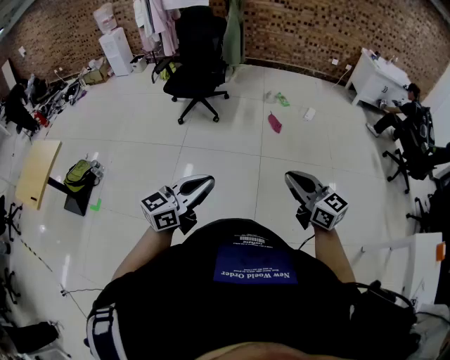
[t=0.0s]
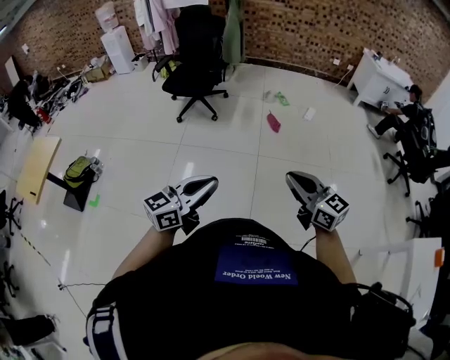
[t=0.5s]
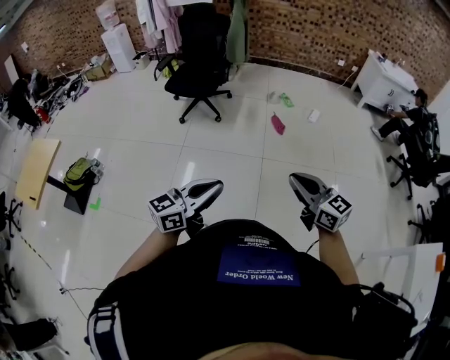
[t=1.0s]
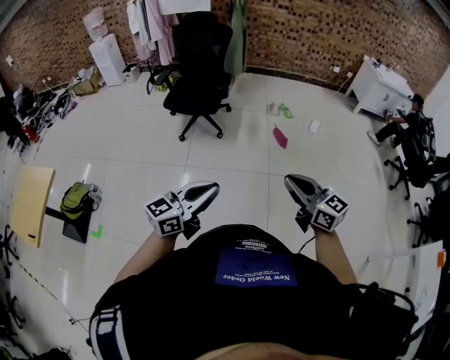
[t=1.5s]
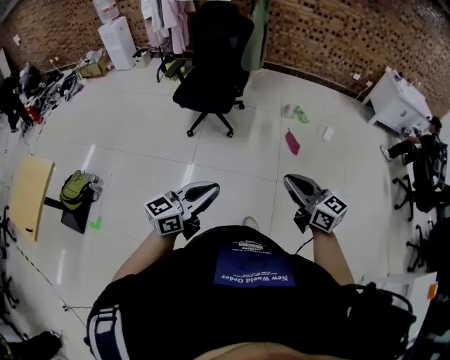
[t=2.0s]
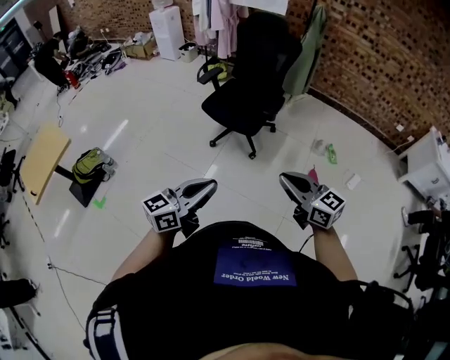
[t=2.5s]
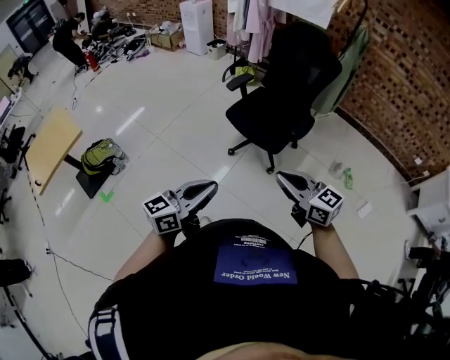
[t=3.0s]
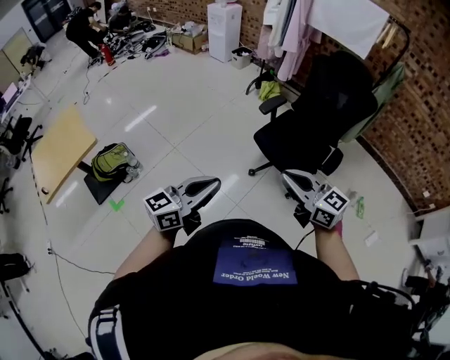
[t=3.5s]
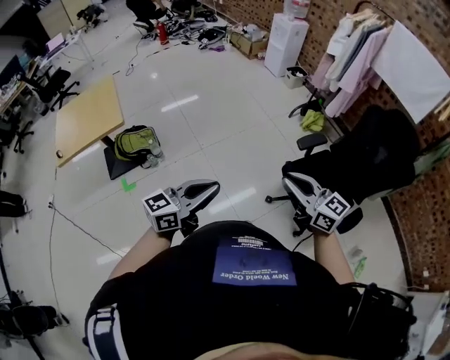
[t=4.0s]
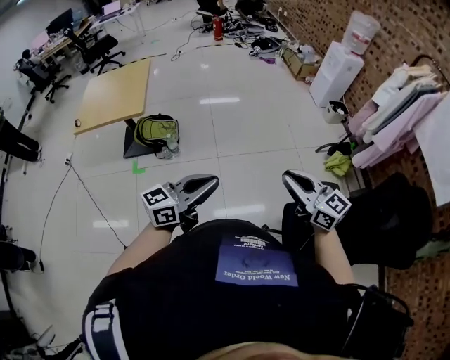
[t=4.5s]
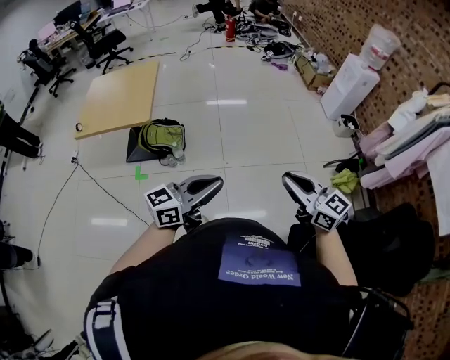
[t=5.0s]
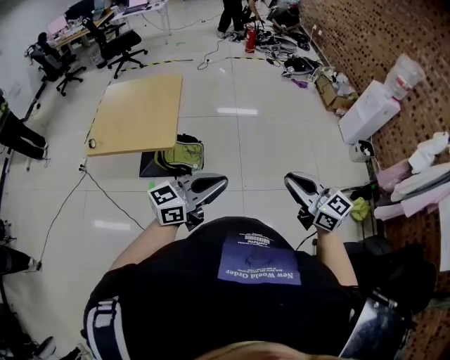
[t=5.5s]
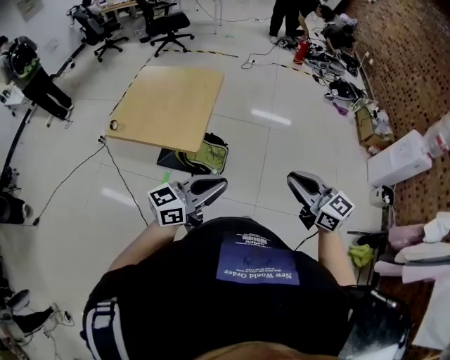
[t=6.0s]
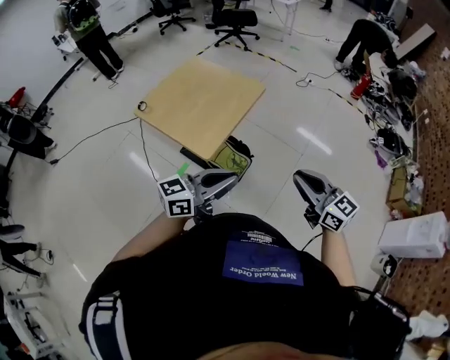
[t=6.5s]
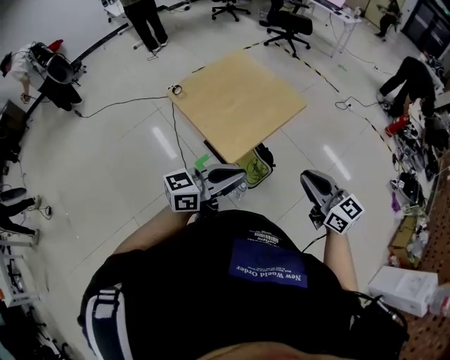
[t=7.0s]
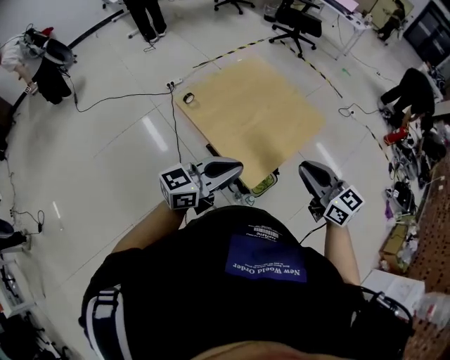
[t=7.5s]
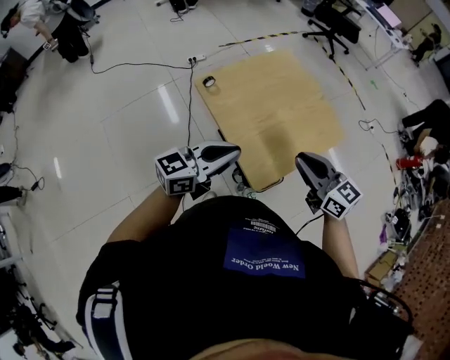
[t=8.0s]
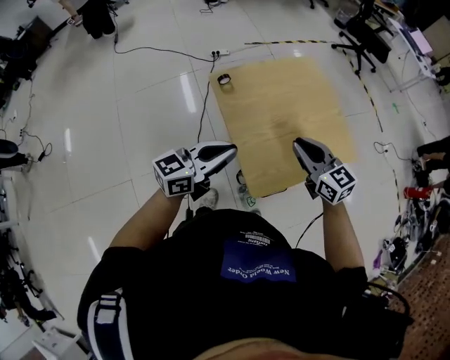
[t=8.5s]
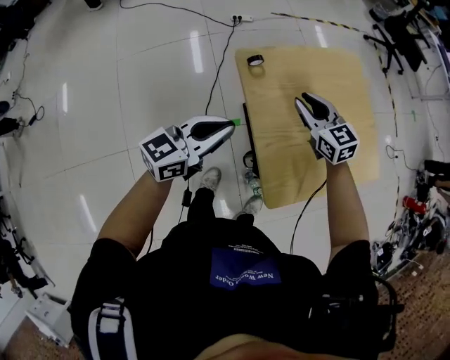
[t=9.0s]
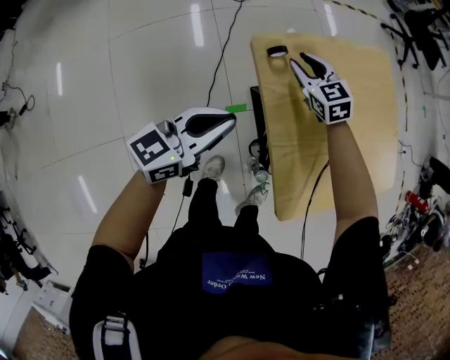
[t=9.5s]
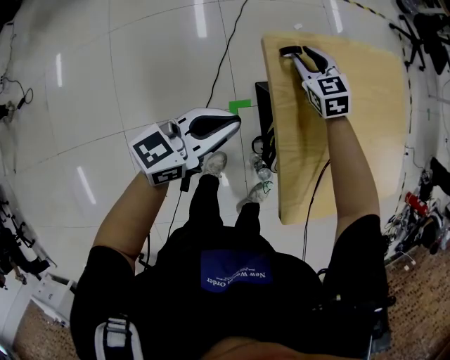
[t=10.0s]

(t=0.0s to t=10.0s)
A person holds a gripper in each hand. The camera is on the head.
t=0.0s - t=2.0s: The two grippers go roughly 35 cm forward and to the left.
t=2.0s - t=4.0s: The pair of grippers is taken roughly 70 cm. The right gripper rotates roughly 50 degrees, while the left gripper swivels approximately 50 degrees.
t=4.0s - t=6.0s: Both grippers are carried approximately 60 cm. The right gripper swivels approximately 40 degrees. Meanwhile the left gripper rotates about 40 degrees.
t=6.0s - t=8.0s: The right gripper shifts by approximately 50 cm, and rotates roughly 50 degrees. The left gripper ends up roughly 35 cm from where it was, and swivels about 50 degrees.
t=8.0s - t=10.0s: The left gripper heads to the left, downward and forward, covering approximately 35 cm, and swivels approximately 20 degrees. The right gripper goes roughly 60 cm forward, downward and to the left, changes its angle by roughly 40 degrees, and opens its fingers.

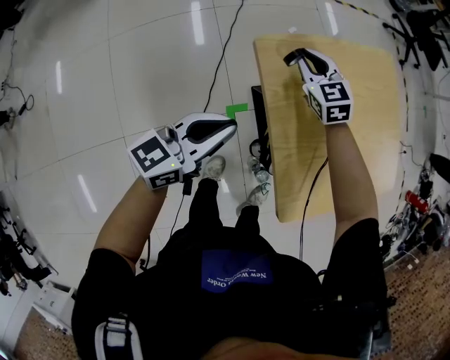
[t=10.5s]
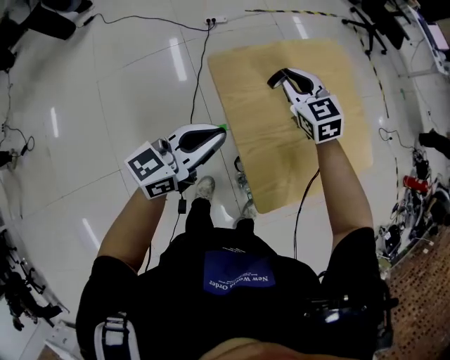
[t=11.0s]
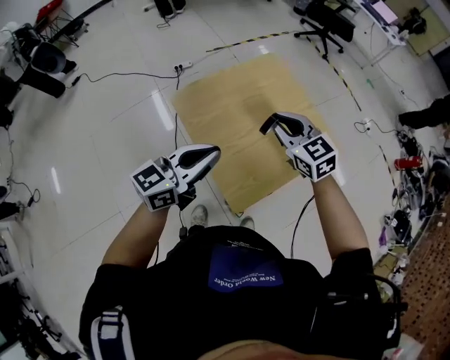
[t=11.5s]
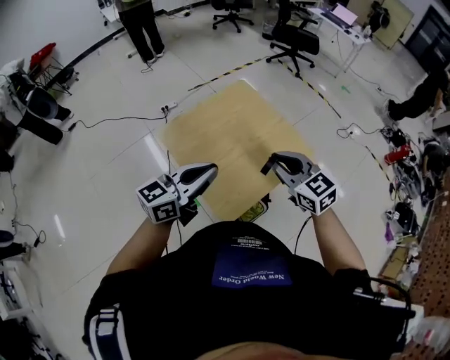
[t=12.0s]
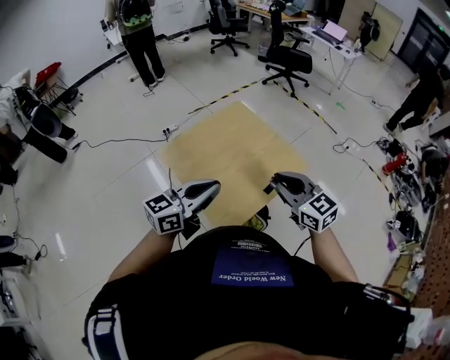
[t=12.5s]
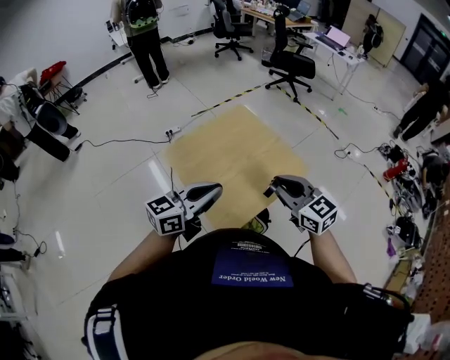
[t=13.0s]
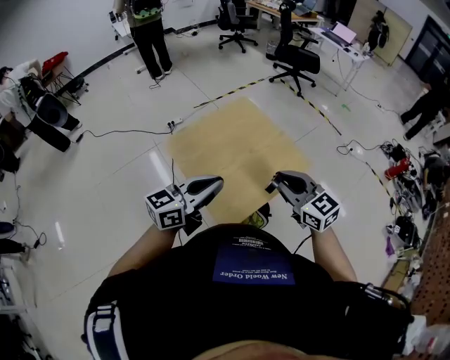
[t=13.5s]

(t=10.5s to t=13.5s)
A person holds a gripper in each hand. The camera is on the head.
t=10.5s - t=12.0s: The left gripper goes approximately 35 cm to the right and upward, and changes its angle by about 20 degrees; the right gripper heads to the right, backward and upward, covering roughly 50 cm.
t=12.0s - t=13.5s: The right gripper shifts by roughly 5 cm.

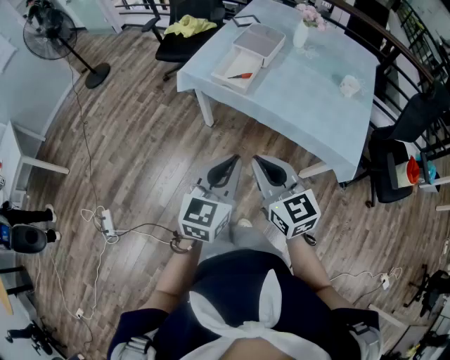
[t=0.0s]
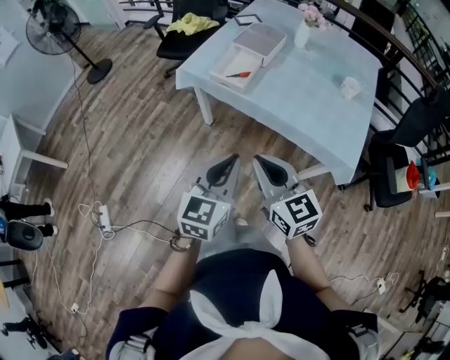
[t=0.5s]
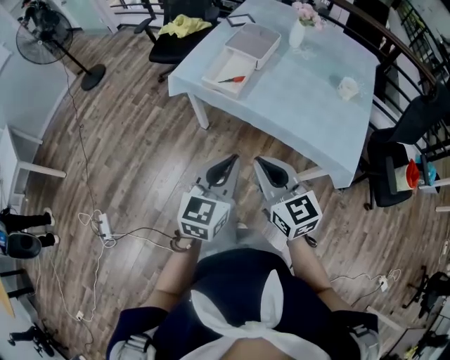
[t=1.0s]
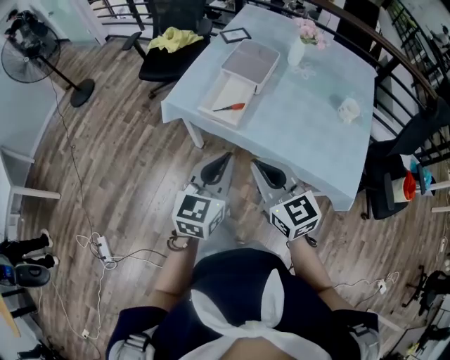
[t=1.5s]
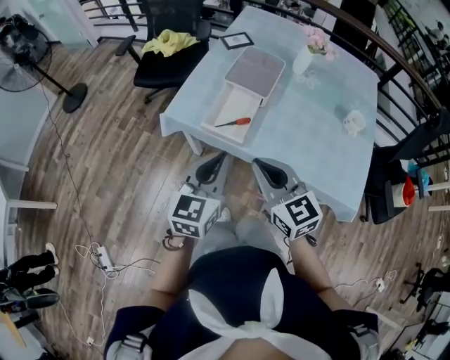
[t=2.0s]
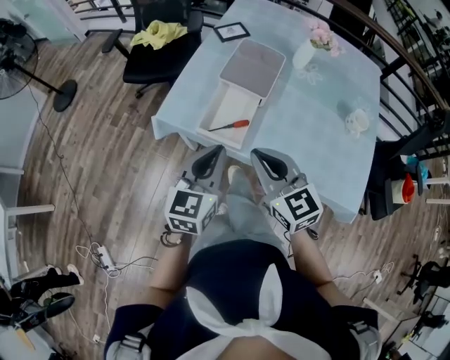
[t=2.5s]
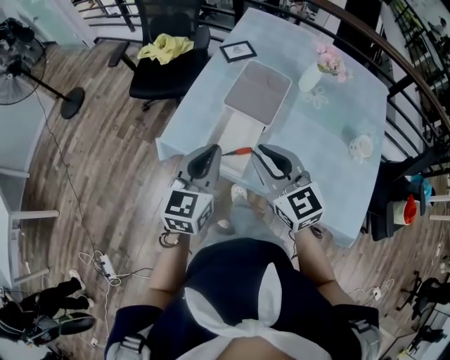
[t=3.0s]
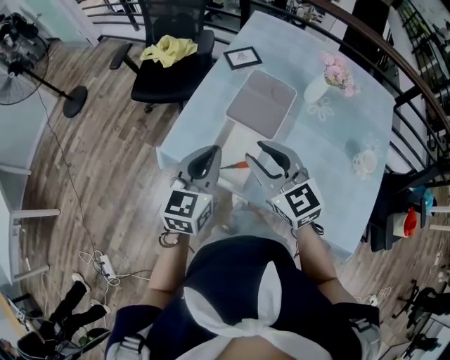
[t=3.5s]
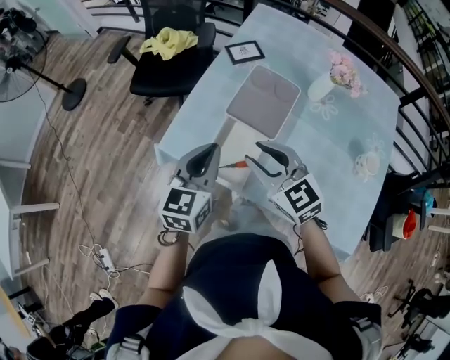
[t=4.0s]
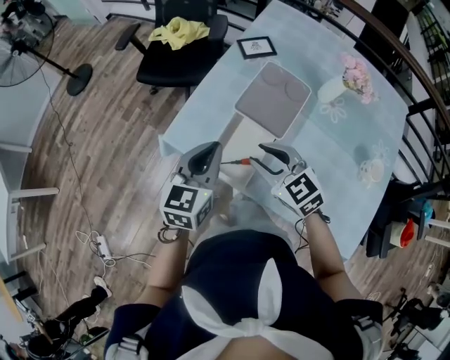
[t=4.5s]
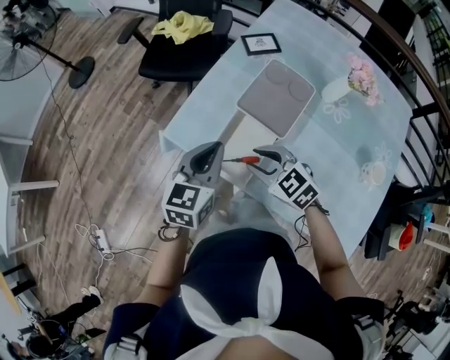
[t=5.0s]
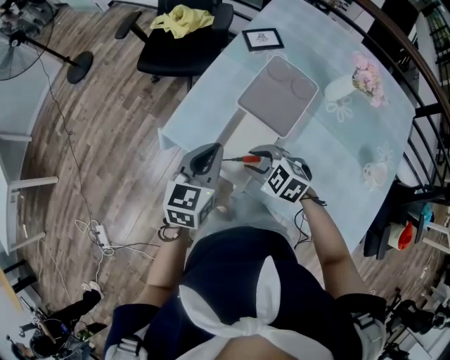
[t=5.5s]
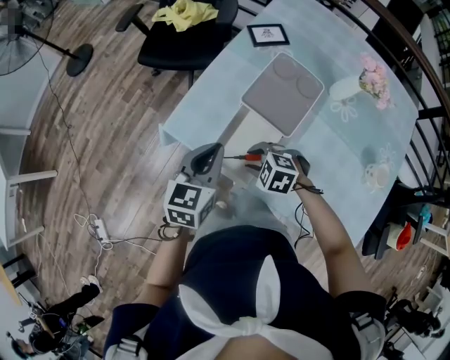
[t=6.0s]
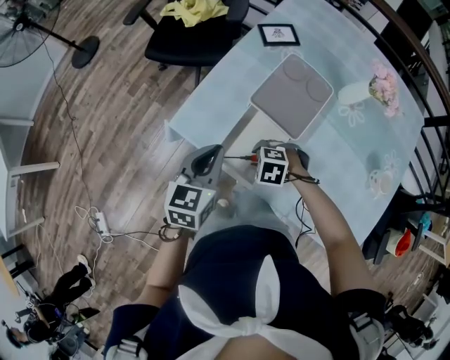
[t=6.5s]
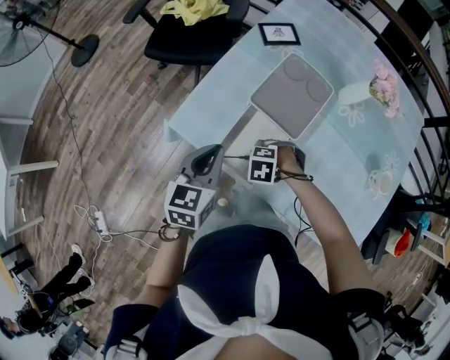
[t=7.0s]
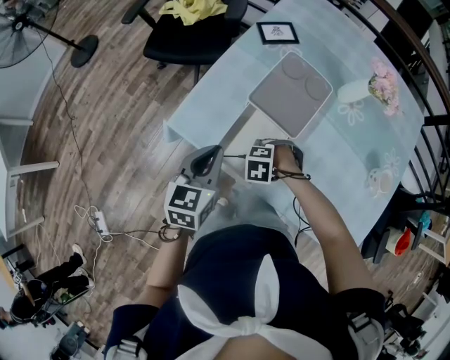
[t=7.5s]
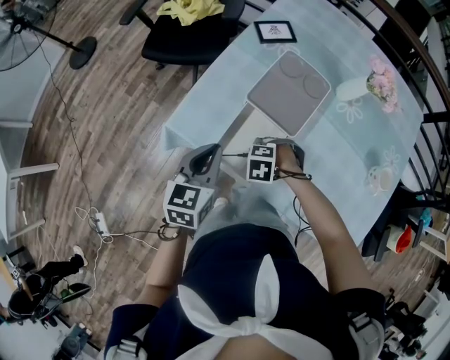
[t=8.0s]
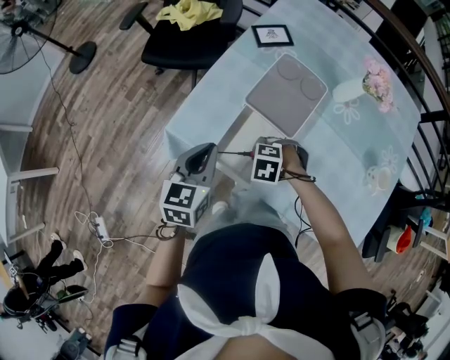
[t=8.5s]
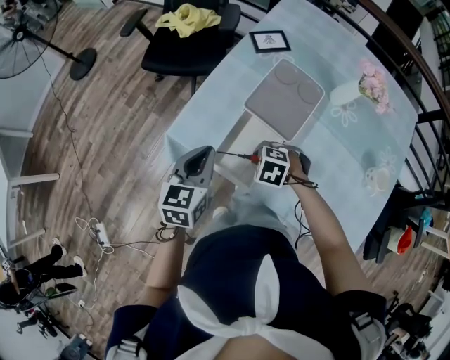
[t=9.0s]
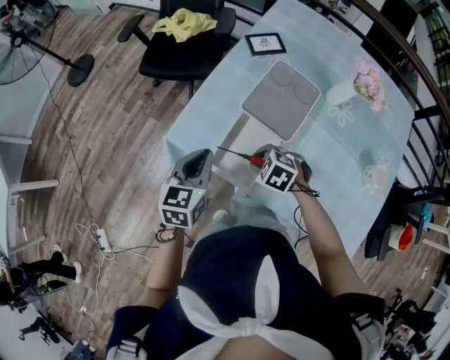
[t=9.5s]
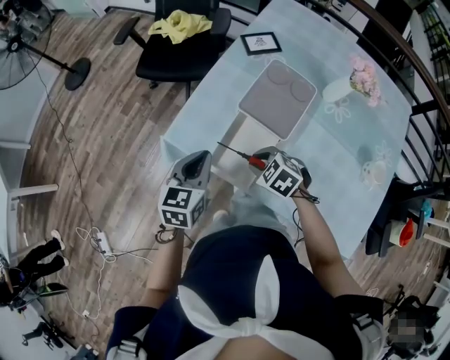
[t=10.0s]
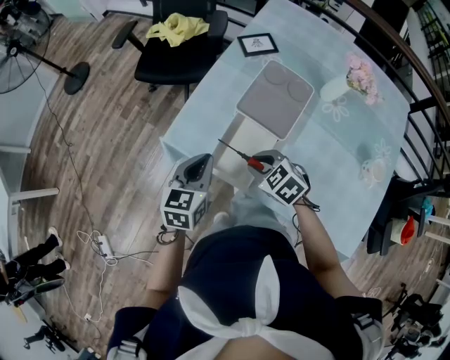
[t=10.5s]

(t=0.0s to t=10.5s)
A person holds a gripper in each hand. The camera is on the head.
t=0.0s - t=2.0s: The two grippers go some 30 cm forward.
t=2.0s - t=4.0s: Both grippers move forward, some 25 cm. The right gripper opens.
t=4.0s - t=6.5s: The right gripper heads downward, covering about 25 cm, and tilts its fingers about 50 degrees downward. The left gripper moves downward, approximately 10 cm.
t=6.5s - t=8.5s: The grippers make only small movements.
t=8.5s - t=10.5s: The right gripper moves upward, some 10 cm, and swivels approximately 40 degrees.

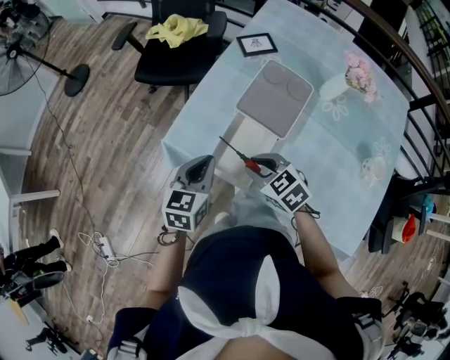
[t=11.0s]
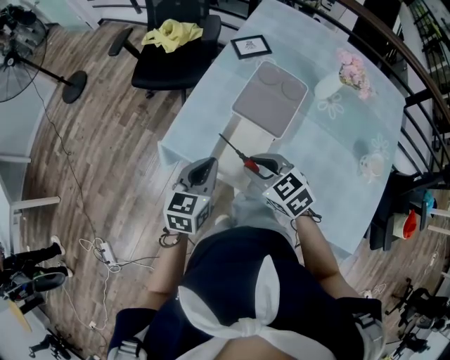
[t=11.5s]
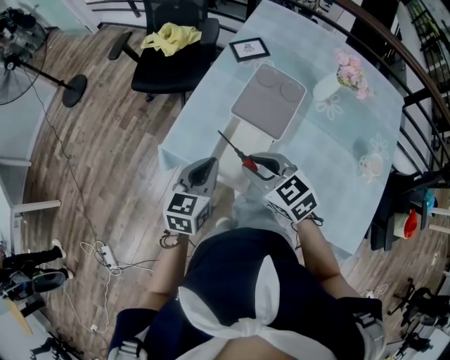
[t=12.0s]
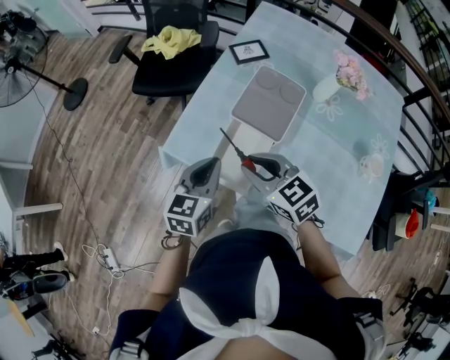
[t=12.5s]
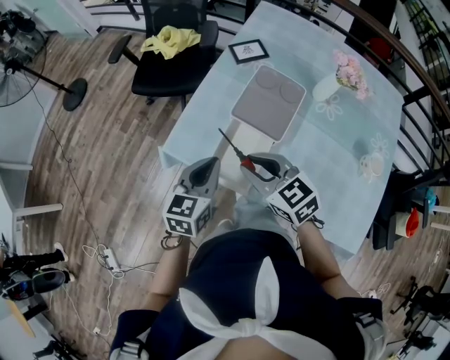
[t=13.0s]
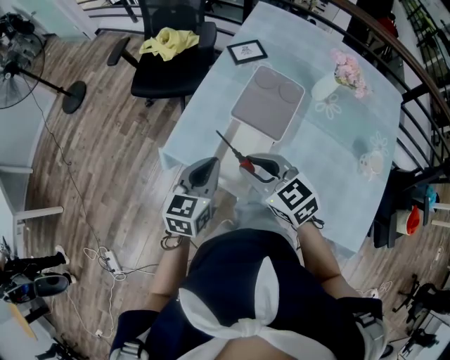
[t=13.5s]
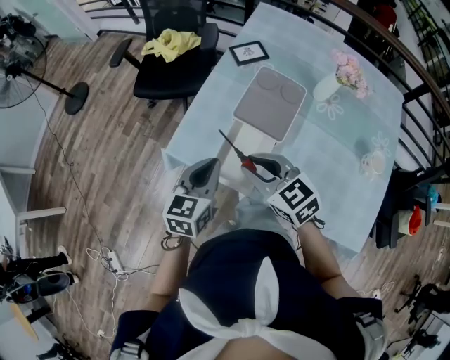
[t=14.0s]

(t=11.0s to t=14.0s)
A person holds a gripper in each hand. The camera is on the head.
t=11.0s - t=12.5s: The right gripper moves upward, approximately 10 cm.
t=12.5s - t=14.0s: The grippers make only small movements.
